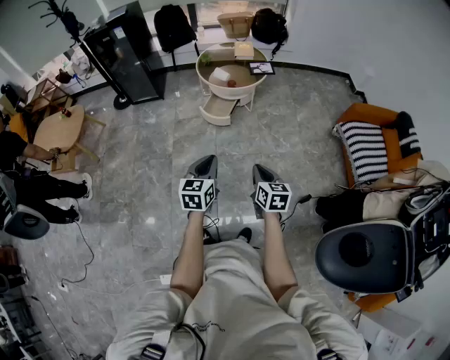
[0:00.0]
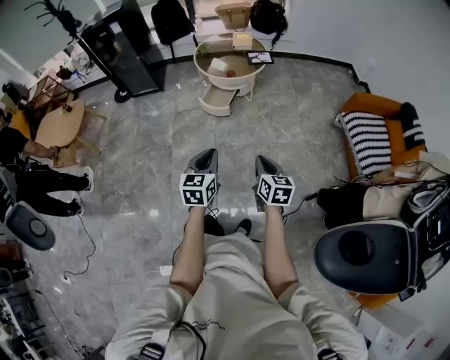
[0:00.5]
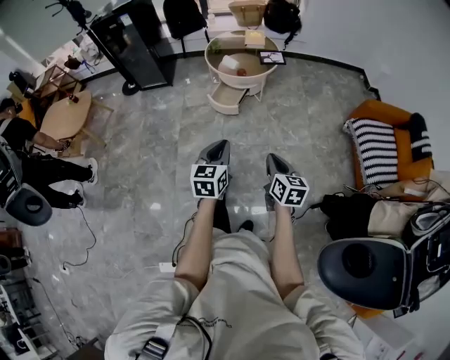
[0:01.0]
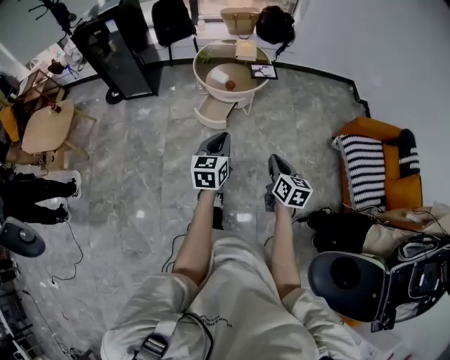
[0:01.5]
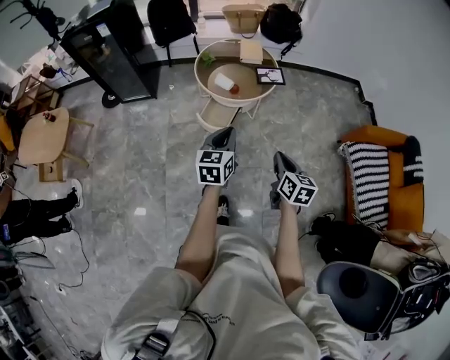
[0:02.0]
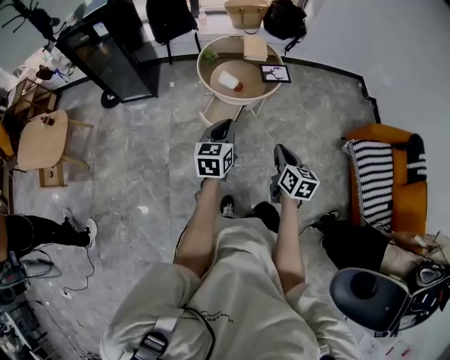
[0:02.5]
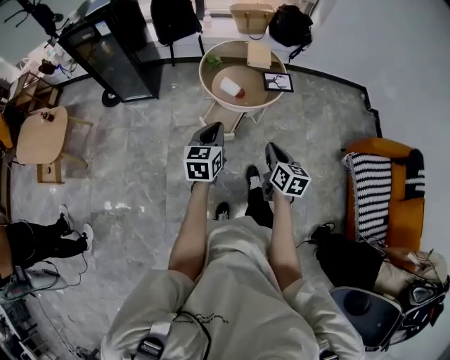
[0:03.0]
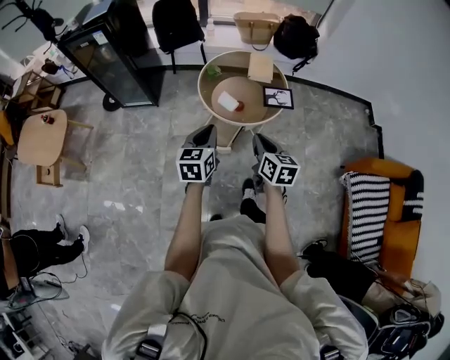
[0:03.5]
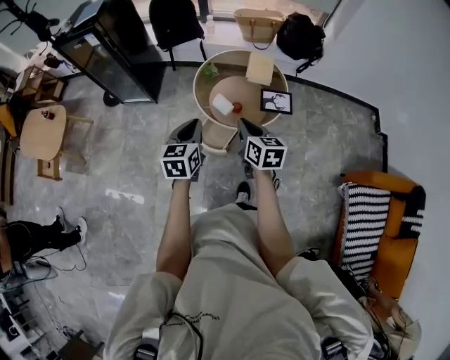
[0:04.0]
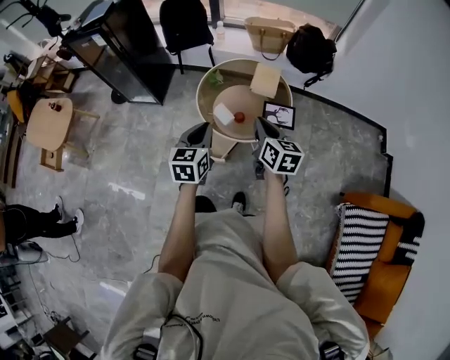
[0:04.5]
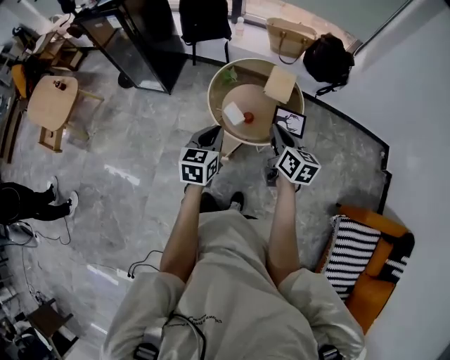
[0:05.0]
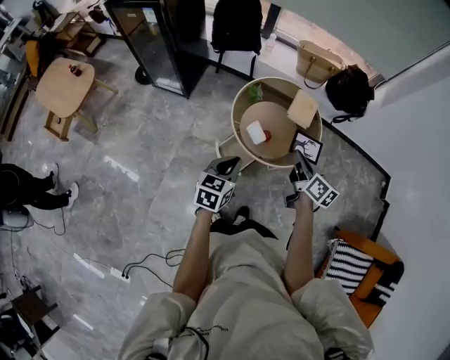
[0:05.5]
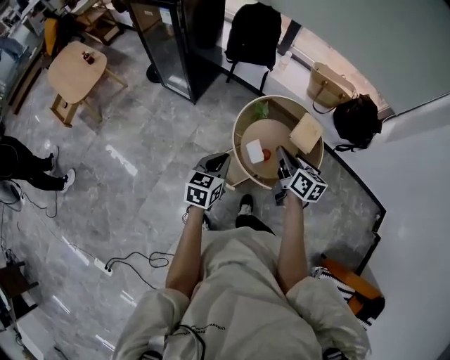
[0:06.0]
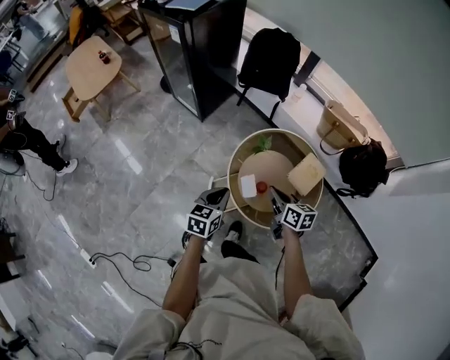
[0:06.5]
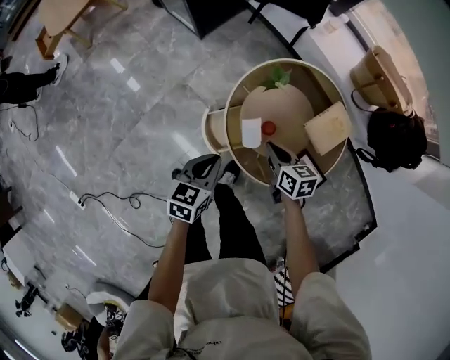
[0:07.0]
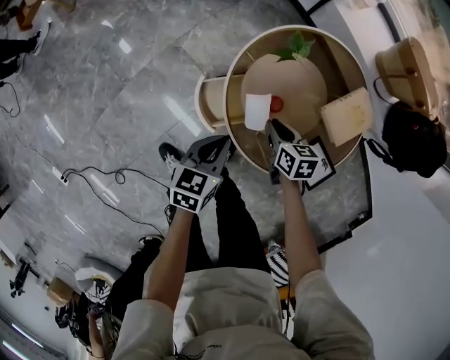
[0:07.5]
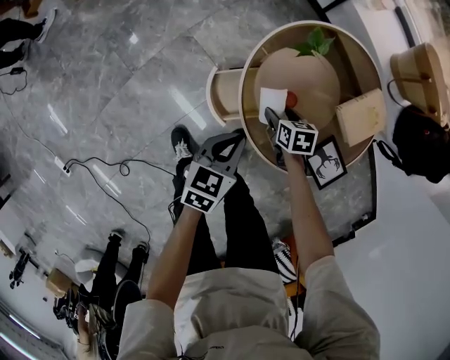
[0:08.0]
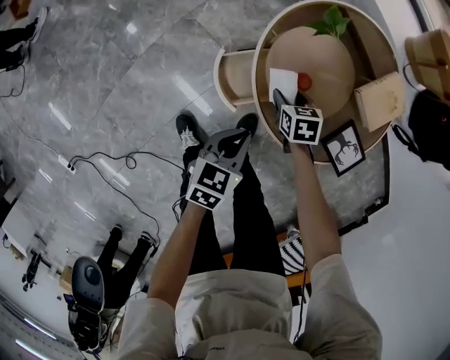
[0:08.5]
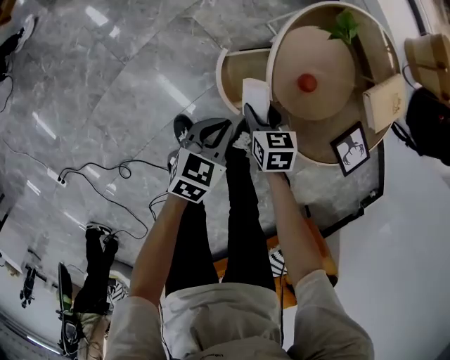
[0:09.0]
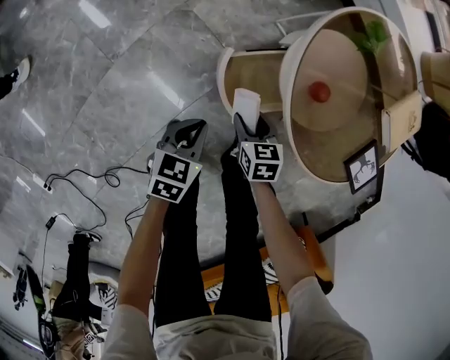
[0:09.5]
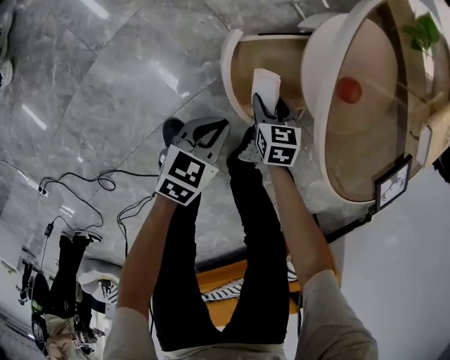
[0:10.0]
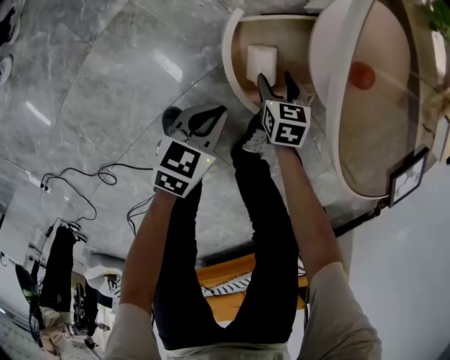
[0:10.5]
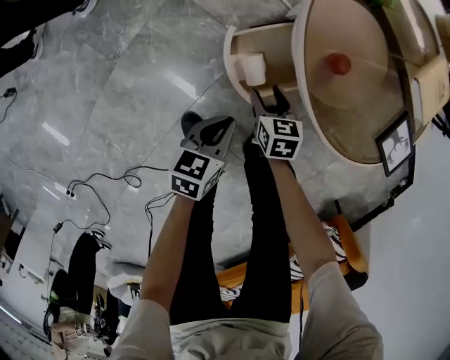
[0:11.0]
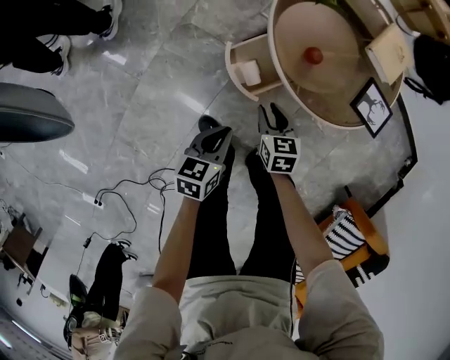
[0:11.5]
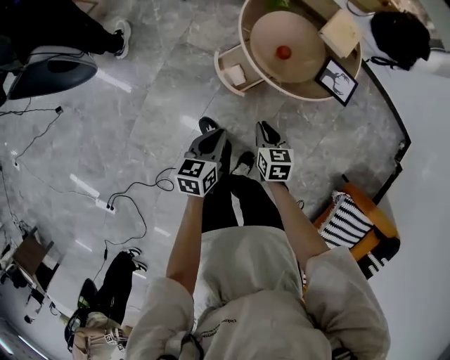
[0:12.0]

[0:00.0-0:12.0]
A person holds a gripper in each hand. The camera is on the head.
0:00.0 to 0:02.0: Both grippers move forward, about 35 cm.
0:02.0 to 0:04.0: The two grippers go some 35 cm forward. The right gripper rotates some 20 degrees.
0:04.0 to 0:06.0: The left gripper is displaced forward by approximately 15 cm; the right gripper heads forward, covering approximately 20 cm, and turns by approximately 20 degrees.
0:06.0 to 0:08.0: The left gripper is displaced downward by some 35 cm, and turns by about 20 degrees; the right gripper moves downward, roughly 50 cm, tips its fingers downward by approximately 40 degrees, and opens its fingers.
0:08.0 to 0:10.0: The left gripper goes approximately 35 cm downward. Meanwhile the right gripper is displaced downward and to the left by roughly 35 cm.
0:10.0 to 0:12.0: The right gripper is displaced upward and backward by about 50 cm, swivels approximately 20 degrees, and closes up. Meanwhile the left gripper travels upward by about 50 cm.

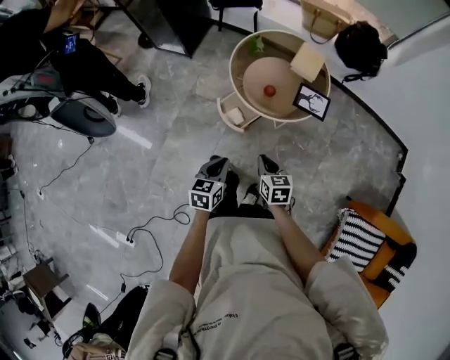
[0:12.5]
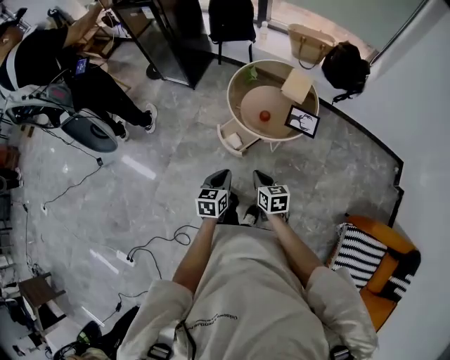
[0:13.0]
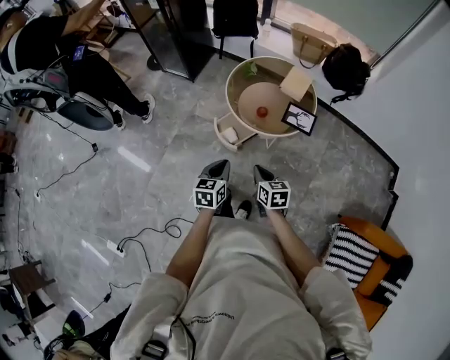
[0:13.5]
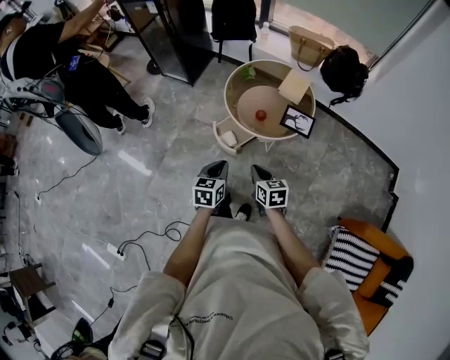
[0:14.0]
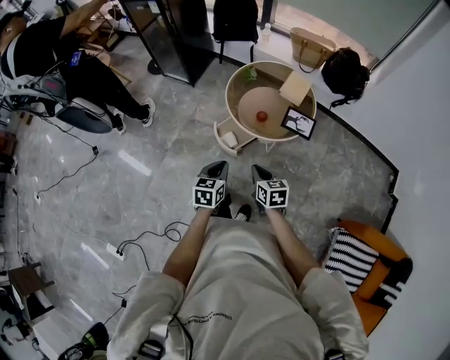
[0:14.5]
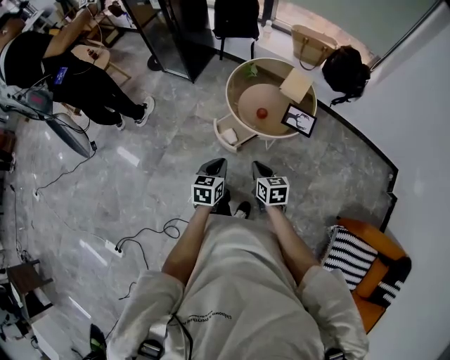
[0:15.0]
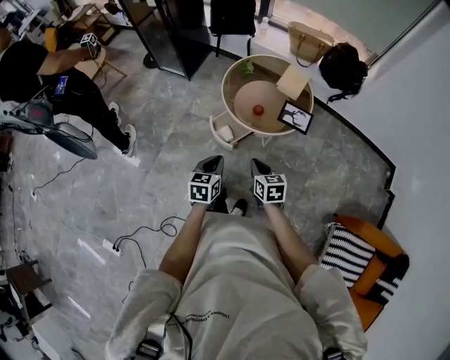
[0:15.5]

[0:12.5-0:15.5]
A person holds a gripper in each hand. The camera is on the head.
0:12.5 to 0:14.0: The left gripper shifts some 10 cm upward and to the right; the right gripper is displaced upward by some 5 cm.
0:14.0 to 0:15.5: There are only small adjustments of the grippers.

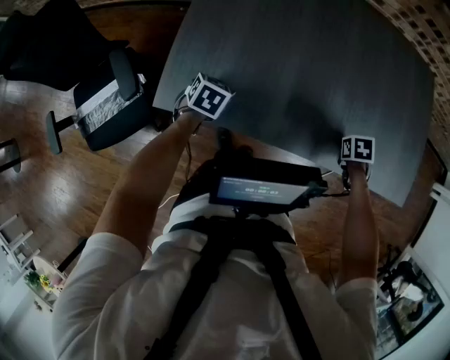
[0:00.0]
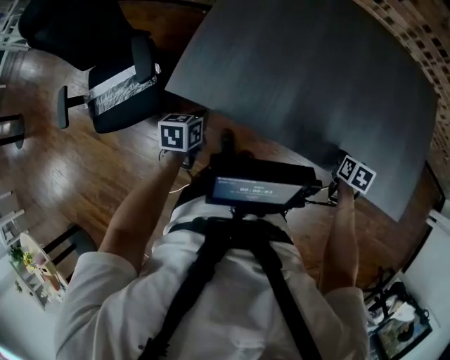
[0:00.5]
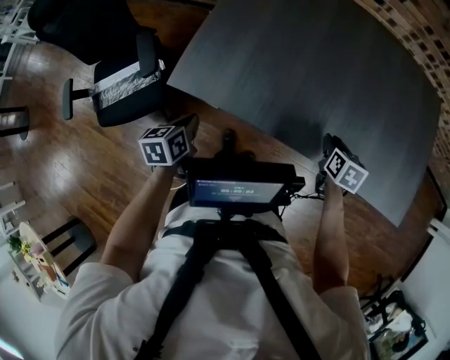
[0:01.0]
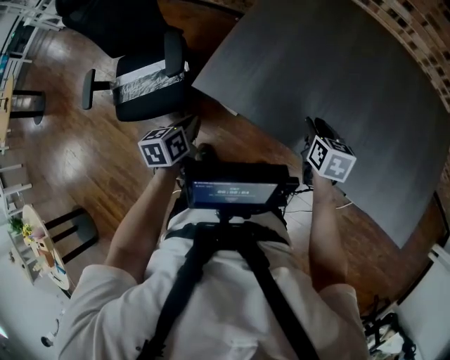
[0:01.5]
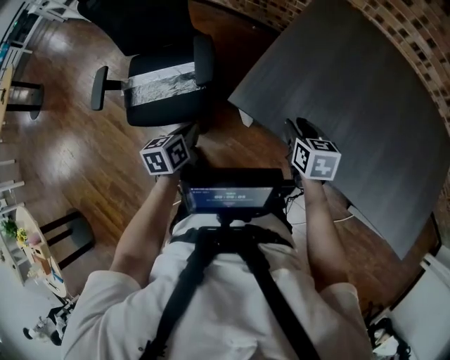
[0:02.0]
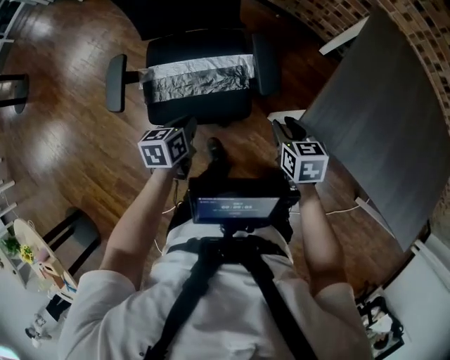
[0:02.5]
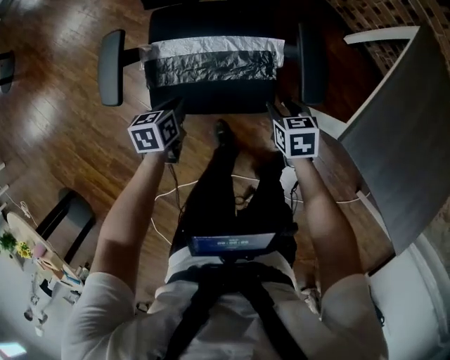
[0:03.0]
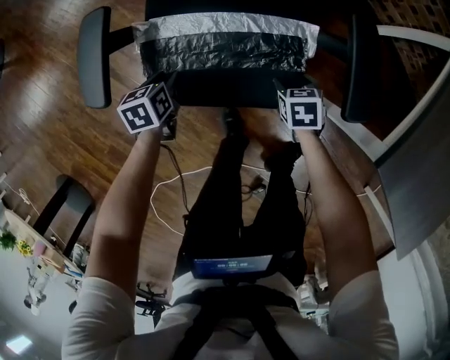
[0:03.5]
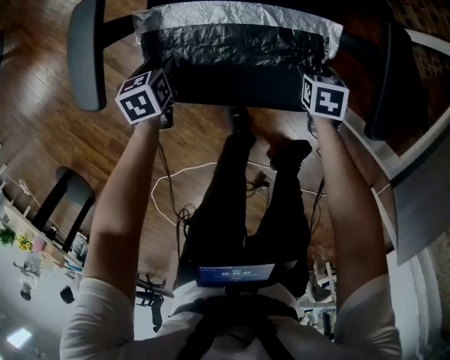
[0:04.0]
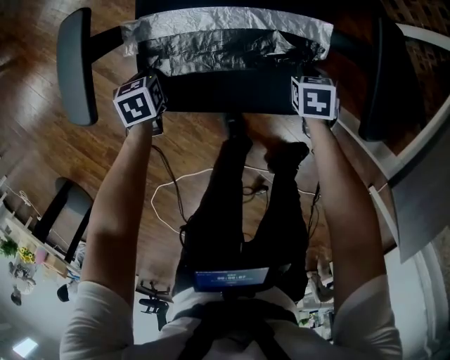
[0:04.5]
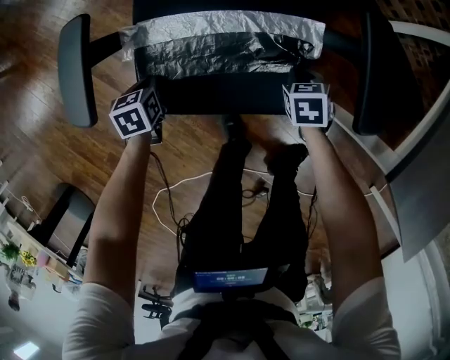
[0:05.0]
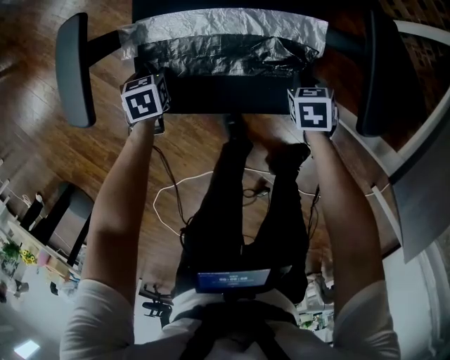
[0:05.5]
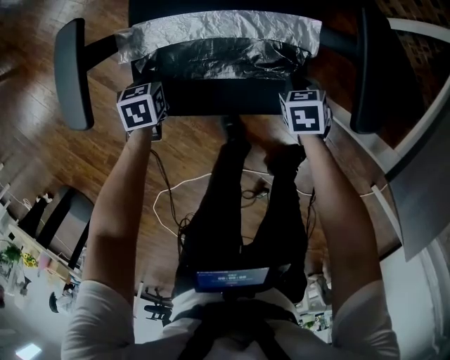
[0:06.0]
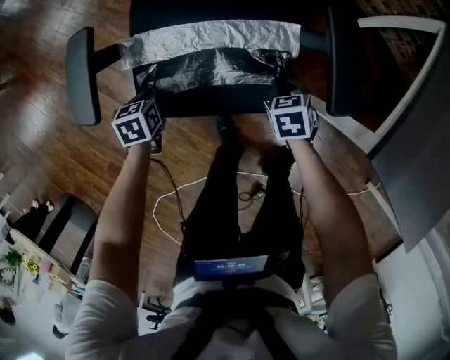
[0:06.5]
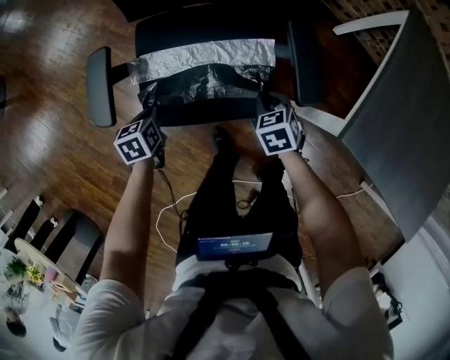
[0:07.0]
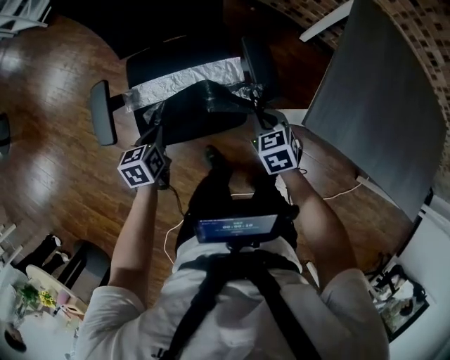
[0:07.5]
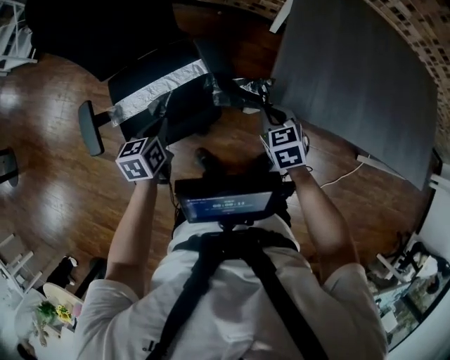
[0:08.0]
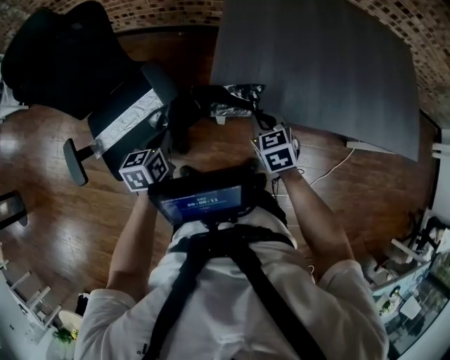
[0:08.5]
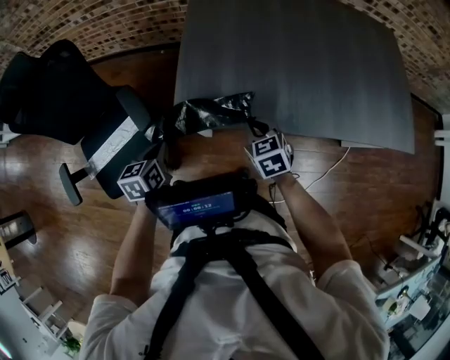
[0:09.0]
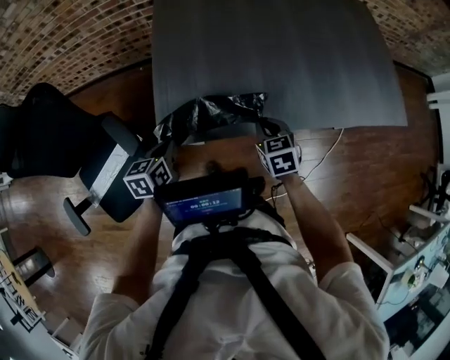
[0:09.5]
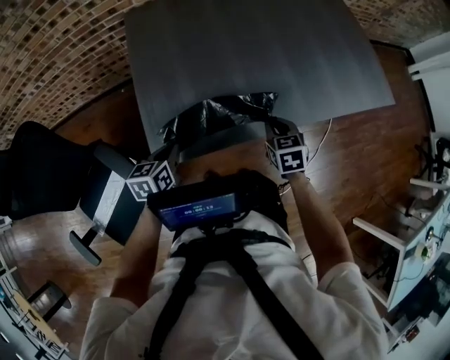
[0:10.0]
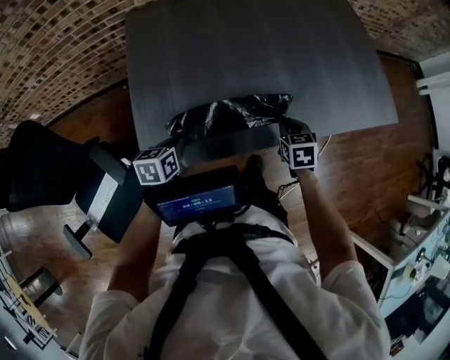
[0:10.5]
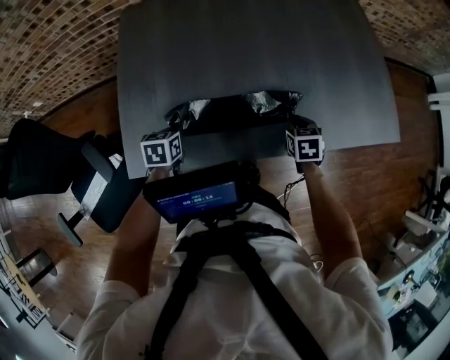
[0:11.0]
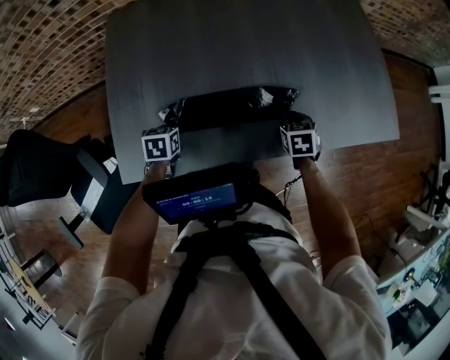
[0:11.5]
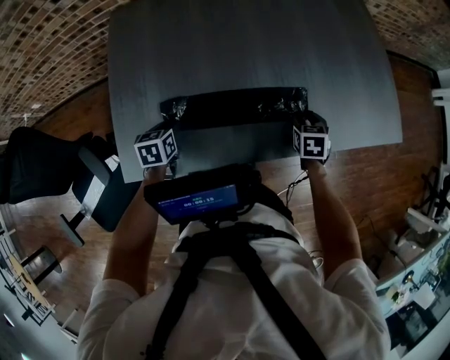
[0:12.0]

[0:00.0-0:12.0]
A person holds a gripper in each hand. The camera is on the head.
0:00.0 to 0:02.0: The right gripper moves approximately 50 cm, tips its fingers upward by approximately 40 degrees, and opens; the left gripper ends up roughly 35 cm from where it was, and rotates around the line of its fingers by about 50 degrees, counterclockwise from behind.
0:02.0 to 0:04.0: The two grippers travel together, roughly 50 cm. The left gripper swivels about 30 degrees, and opens its fingers, while the right gripper turns by some 30 degrees, and opens.
0:04.0 to 0:06.0: The left gripper closes up. The right gripper closes up.
0:06.0 to 0:08.0: Both grippers travel together upward and to the right, some 40 cm. The right gripper swivels roughly 30 degrees. Meanwhile the left gripper swivels some 30 degrees.
0:08.0 to 0:10.0: The two grippers travel together, about 40 cm. The right gripper rotates about 40 degrees, while the left gripper changes its angle by approximately 40 degrees.
0:10.0 to 0:12.0: The right gripper moves to the right and forward, roughly 25 cm, and opens. The left gripper shifts approximately 20 cm forward, to the right and downward, and opens up.
